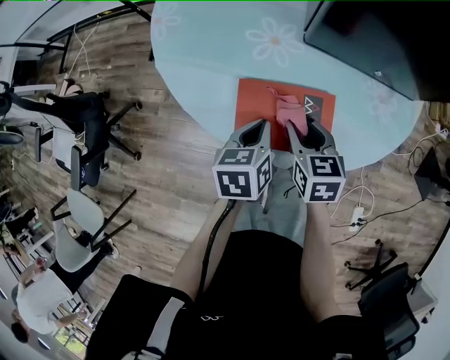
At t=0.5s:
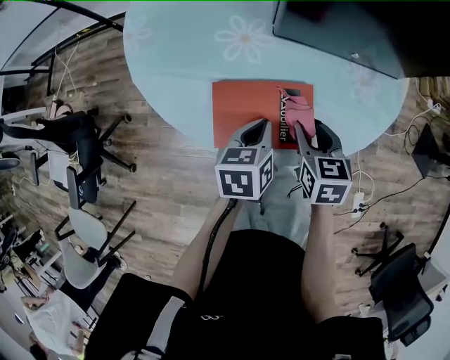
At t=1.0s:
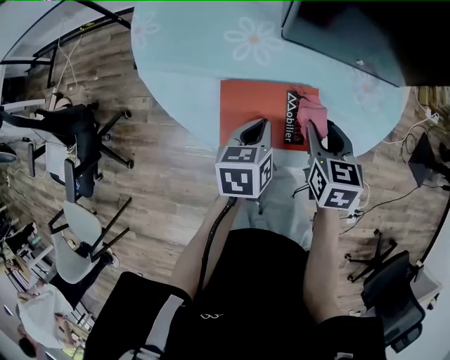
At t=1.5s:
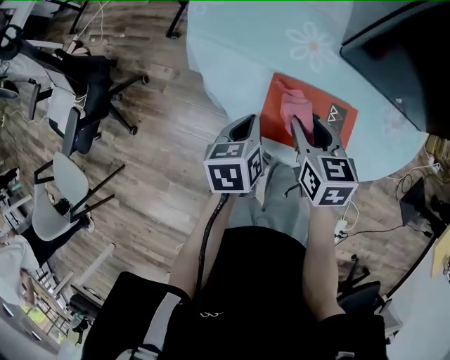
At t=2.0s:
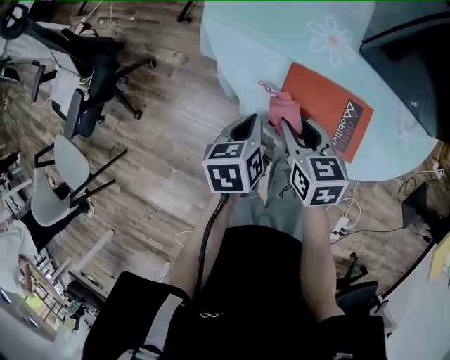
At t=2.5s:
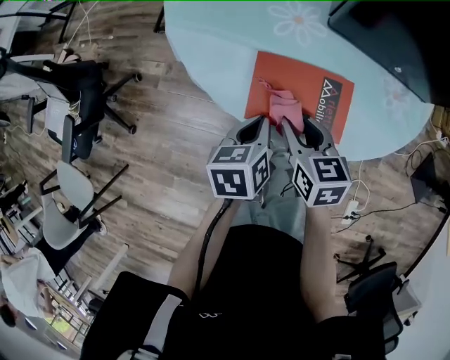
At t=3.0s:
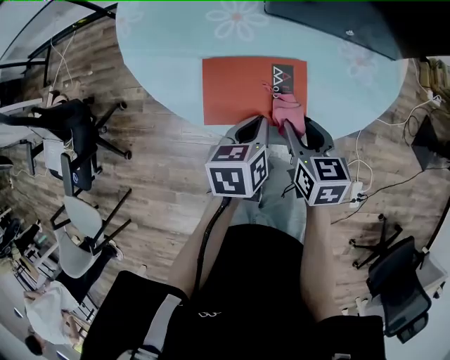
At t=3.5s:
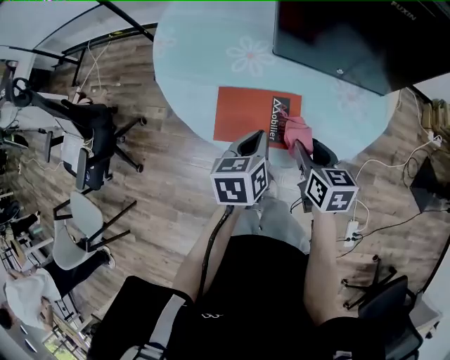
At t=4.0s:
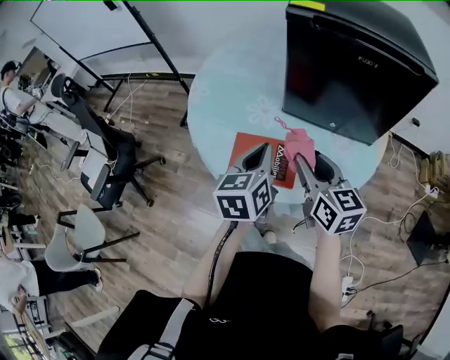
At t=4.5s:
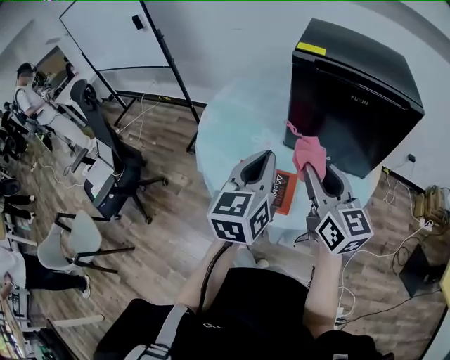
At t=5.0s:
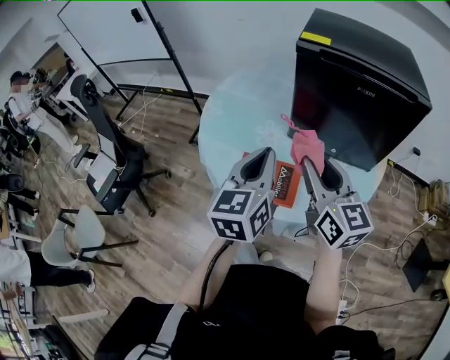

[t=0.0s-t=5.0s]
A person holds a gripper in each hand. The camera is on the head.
t=2.5s to t=5.0s: Both grippers move upward, approximately 30 cm. The right gripper tips its fingers upward by roughly 40 degrees, while the left gripper angles its fingers upward, by approximately 40 degrees.

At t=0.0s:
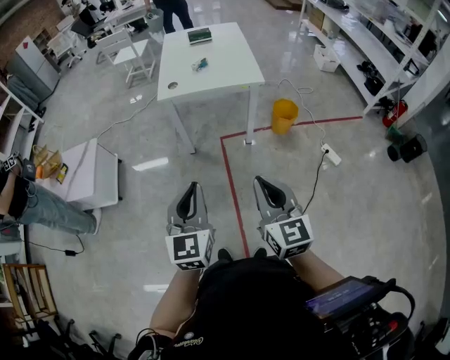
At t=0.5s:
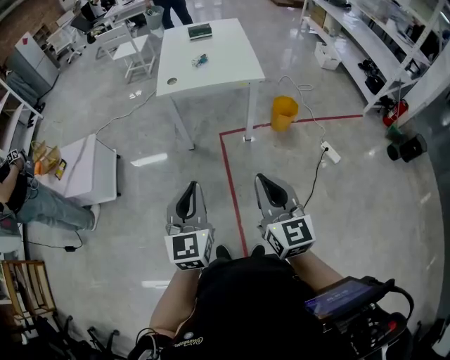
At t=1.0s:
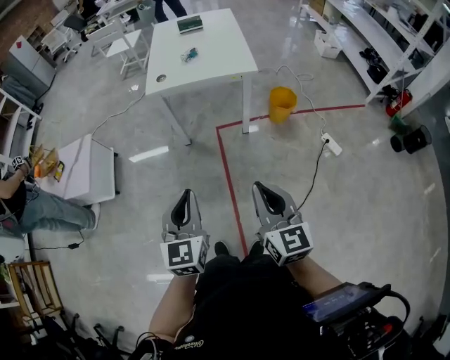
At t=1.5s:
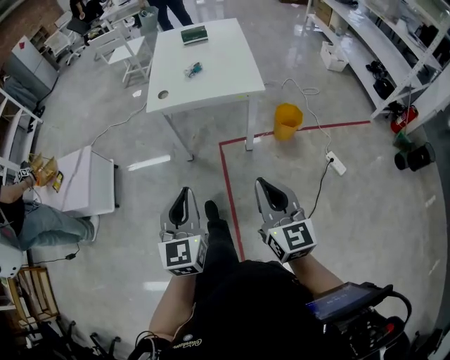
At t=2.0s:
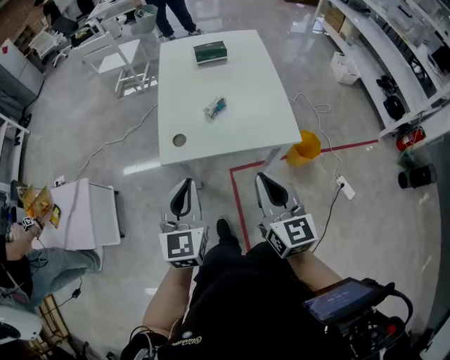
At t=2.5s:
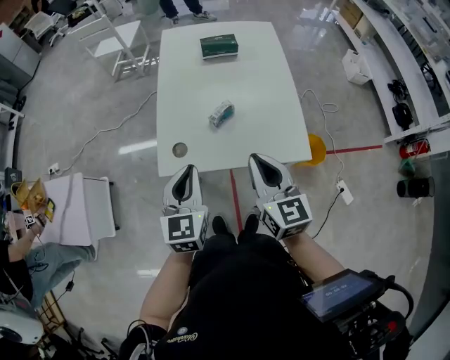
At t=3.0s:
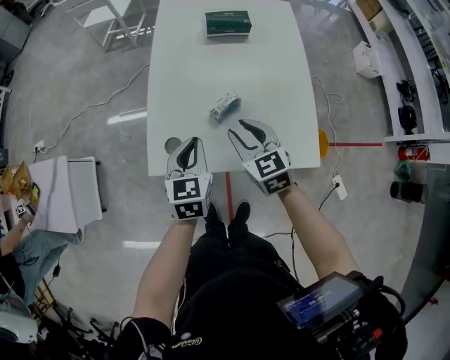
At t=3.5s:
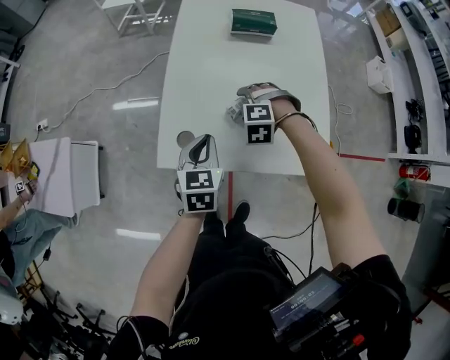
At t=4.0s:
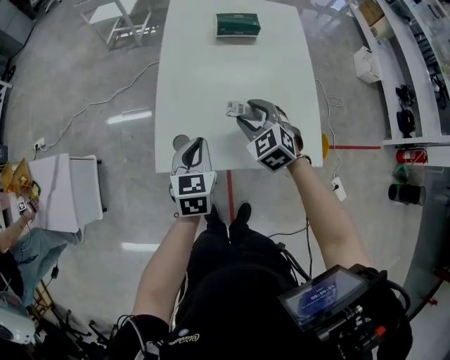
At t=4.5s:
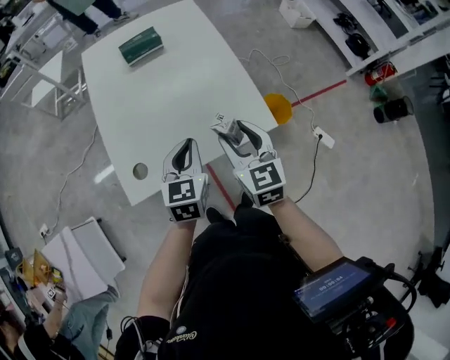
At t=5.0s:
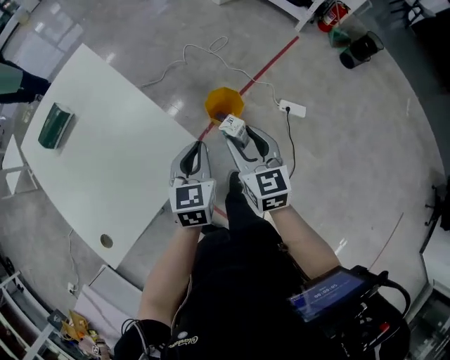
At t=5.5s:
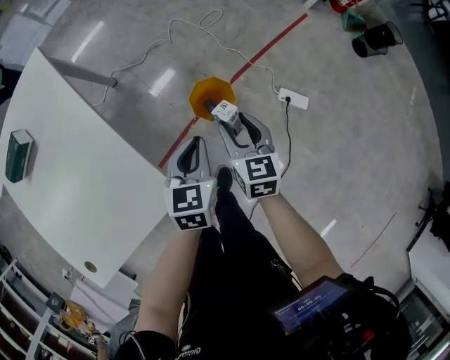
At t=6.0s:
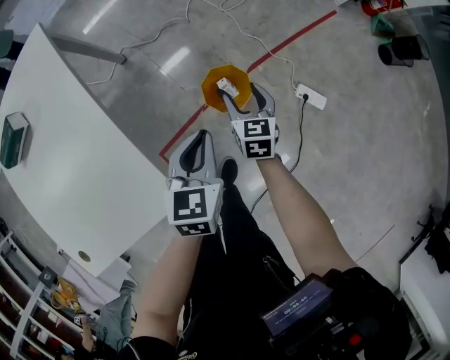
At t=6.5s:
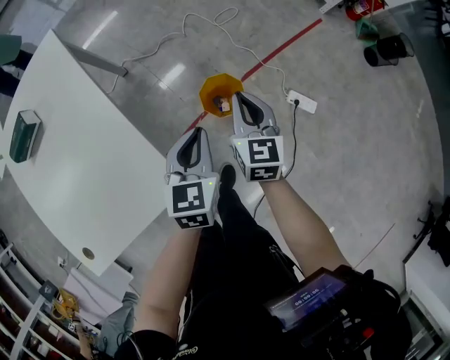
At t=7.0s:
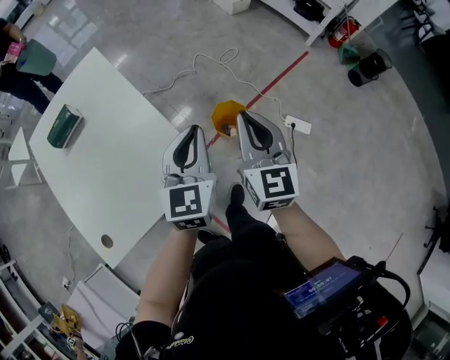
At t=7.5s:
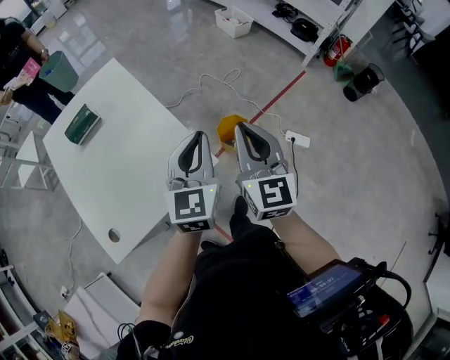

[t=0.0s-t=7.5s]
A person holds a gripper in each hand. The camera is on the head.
t=0.0s to t=2.0s: The two grippers travel together, forward, approximately 50 cm.
t=2.0s to t=4.0s: The grippers both shift forward and downward by roughly 35 cm. The left gripper rotates about 20 degrees; the right gripper tips its fingers downward by roughly 30 degrees, and opens.
t=4.0s to t=5.5s: Both grippers are carried approximately 60 cm. The left gripper turns by roughly 40 degrees; the right gripper rotates around the line of its fingers by roughly 70 degrees, clockwise from behind.
t=5.5s to t=7.5s: The two grippers go roughly 30 cm upward and backward. The left gripper swivels about 30 degrees. The right gripper rotates about 30 degrees, and closes its fingers.

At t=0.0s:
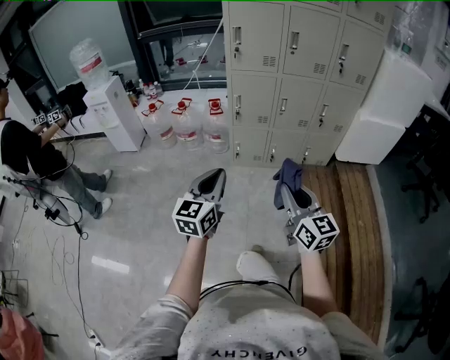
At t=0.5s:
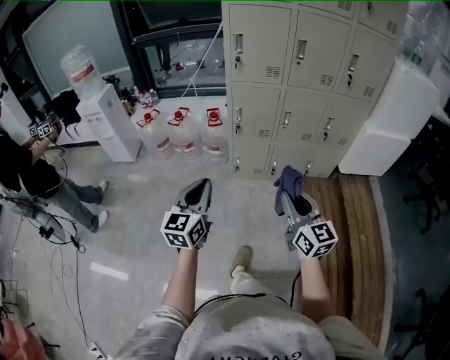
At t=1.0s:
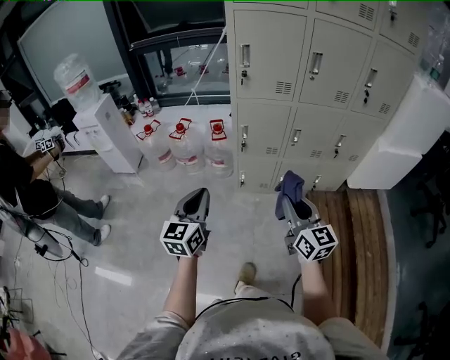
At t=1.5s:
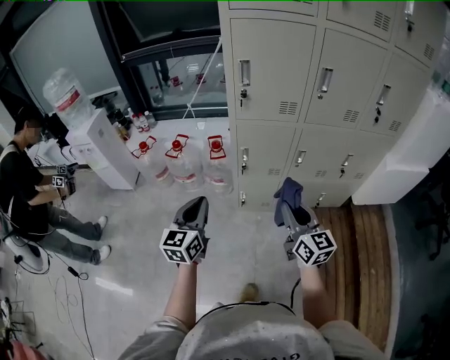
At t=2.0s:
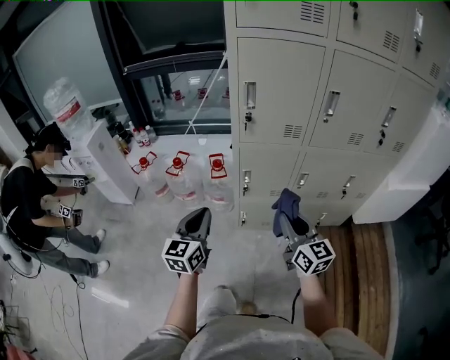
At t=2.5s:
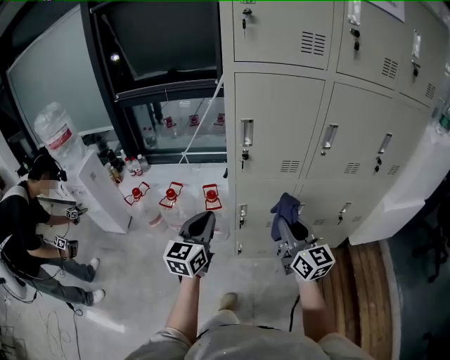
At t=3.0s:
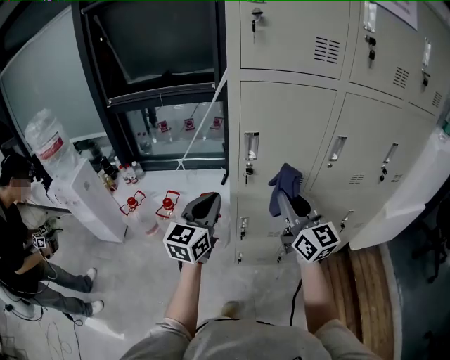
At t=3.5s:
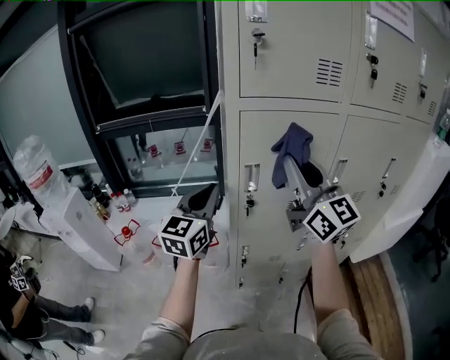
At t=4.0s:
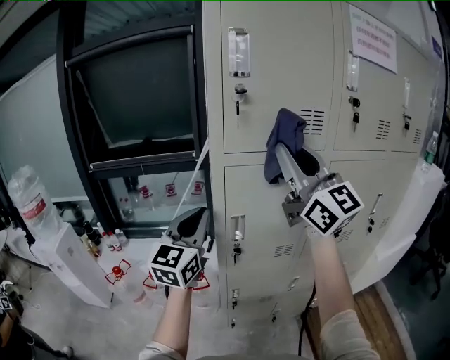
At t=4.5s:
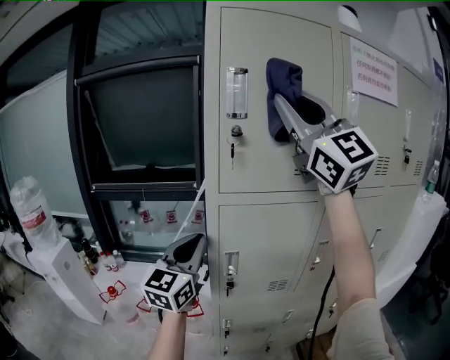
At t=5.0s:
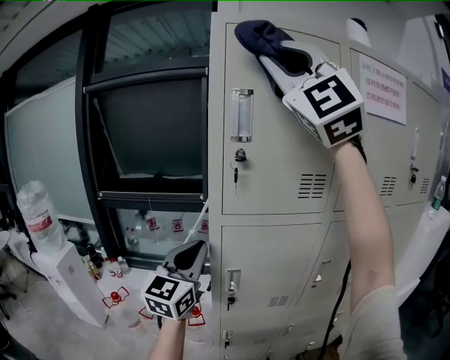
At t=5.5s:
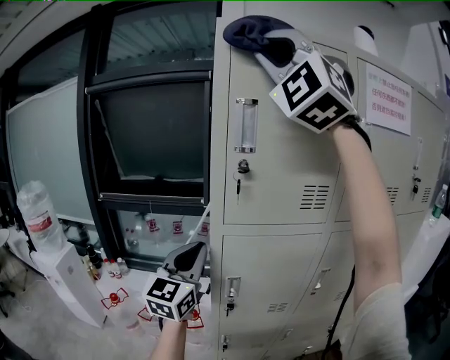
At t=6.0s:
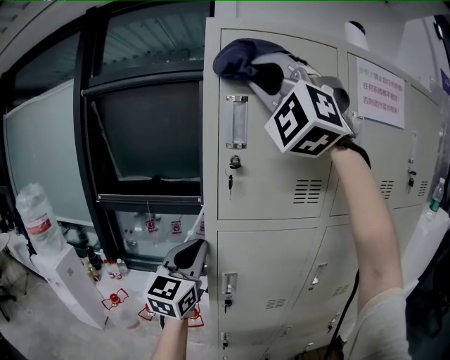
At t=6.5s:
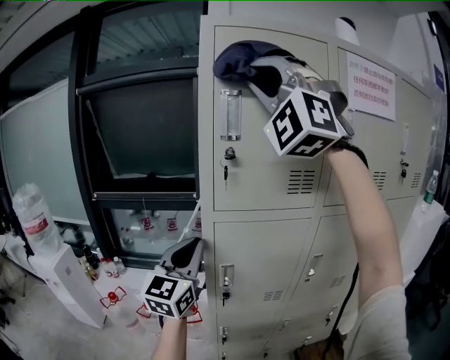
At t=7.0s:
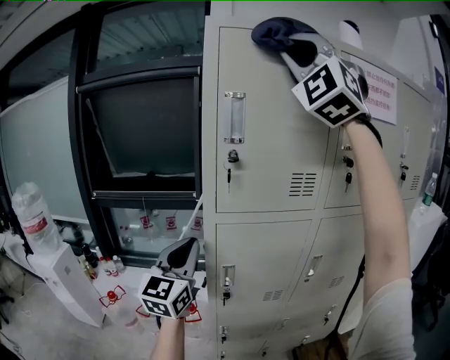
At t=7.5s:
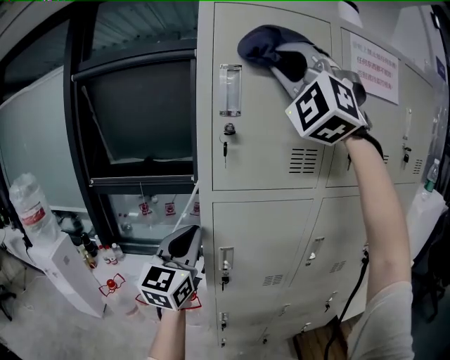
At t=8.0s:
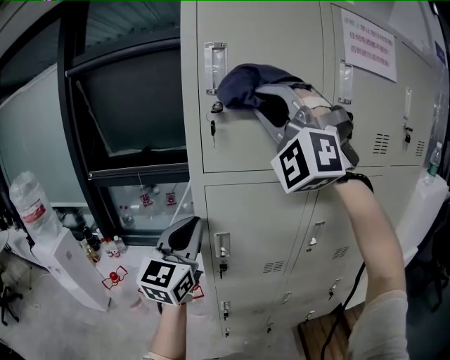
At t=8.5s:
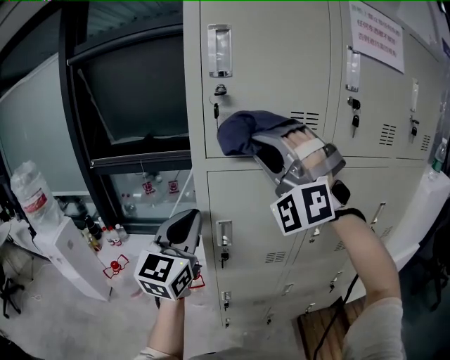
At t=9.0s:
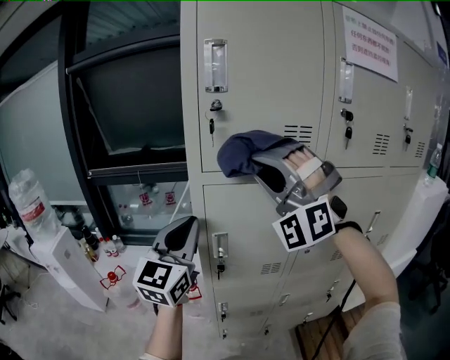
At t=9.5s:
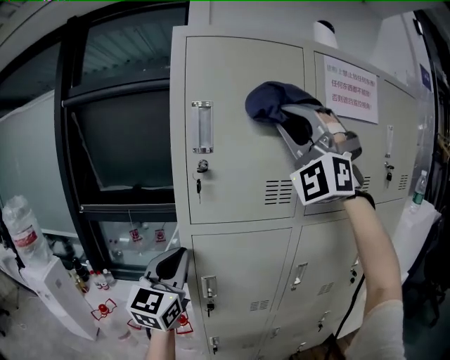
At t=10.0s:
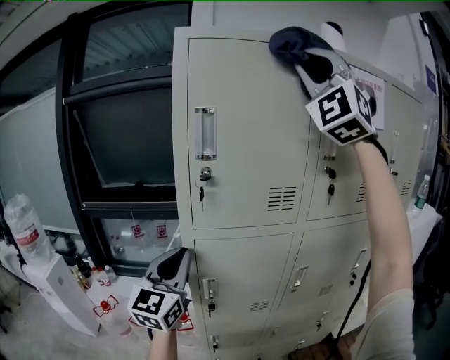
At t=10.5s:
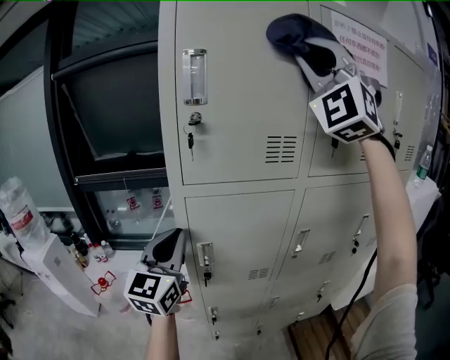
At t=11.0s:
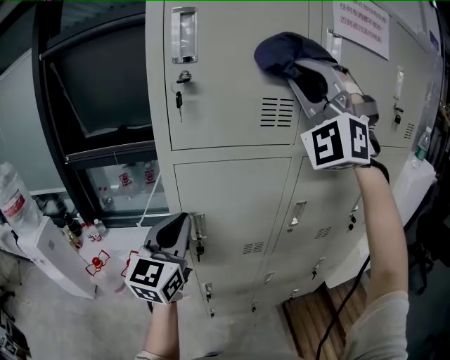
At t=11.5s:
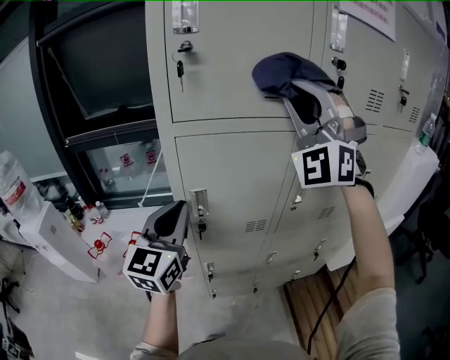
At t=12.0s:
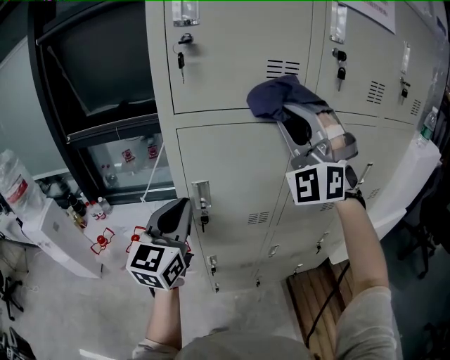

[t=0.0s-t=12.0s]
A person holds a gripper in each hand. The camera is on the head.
t=0.0s to t=2.0s: Both grippers are carried forward, approximately 40 cm.
t=2.0s to t=4.0s: The left gripper is displaced forward and upward by approximately 40 cm, and swivels some 30 degrees. Meanwhile the right gripper shifts about 50 cm upward and forward, and tips its fingers upward by about 30 degrees.
t=4.0s to t=6.0s: The left gripper moves upward, about 10 cm. Meanwhile the right gripper is displaced upward by about 25 cm, and rotates around the line of its fingers by approximately 80 degrees, counterclockwise from behind.
t=6.0s to t=8.0s: The right gripper heads downward, covering roughly 15 cm. Meanwhile the left gripper ends up about 5 cm from where it was.
t=8.0s to t=10.0s: The right gripper shifts roughly 25 cm upward and to the right, while the left gripper moves upward, roughly 5 cm.
t=10.0s to t=12.0s: The right gripper goes approximately 40 cm downward; the left gripper heads downward, covering about 15 cm.

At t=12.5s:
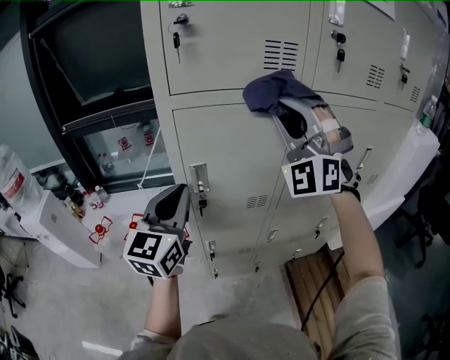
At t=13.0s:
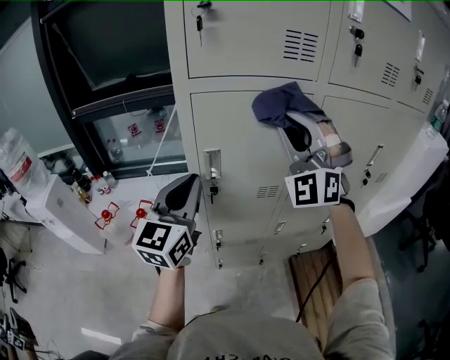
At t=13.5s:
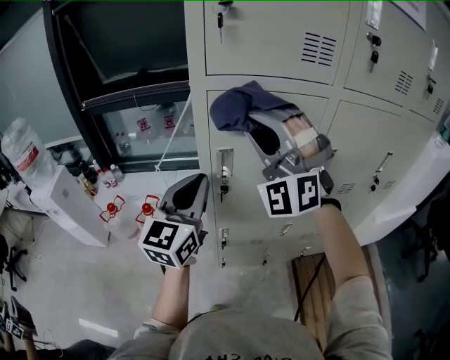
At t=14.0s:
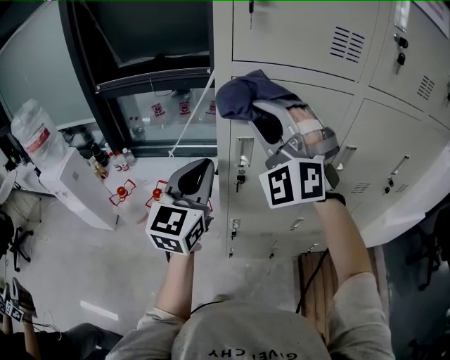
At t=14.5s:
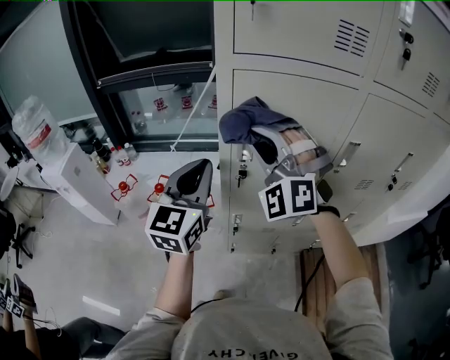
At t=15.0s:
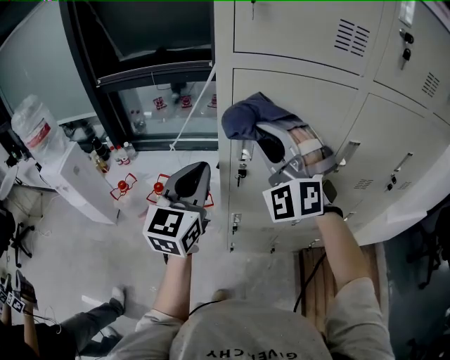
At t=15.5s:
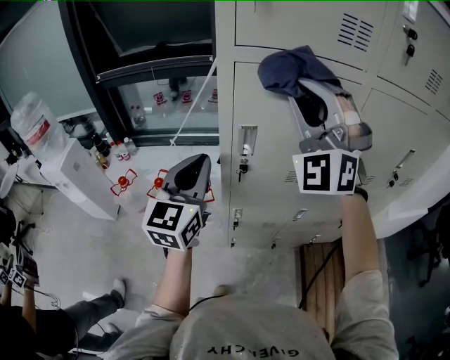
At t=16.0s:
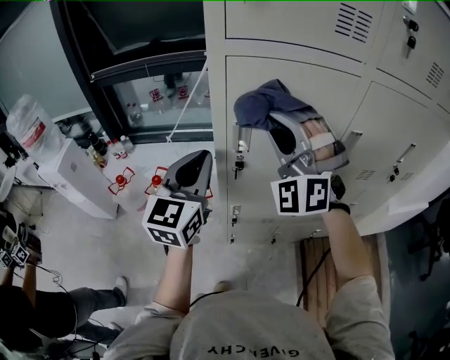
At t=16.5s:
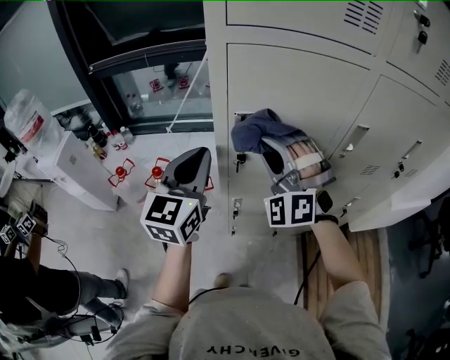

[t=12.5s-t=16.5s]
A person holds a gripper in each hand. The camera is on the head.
t=12.5s to t=14.5s: The left gripper shifts approximately 5 cm to the left, while the right gripper heads to the left and downward, covering some 20 cm, and rotates about 20 degrees.
t=14.5s to t=16.5s: The right gripper shifts some 10 cm downward.
